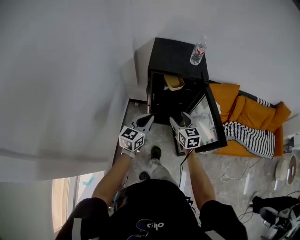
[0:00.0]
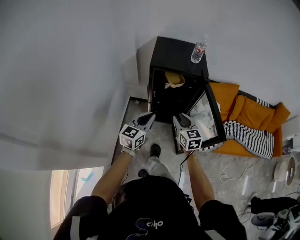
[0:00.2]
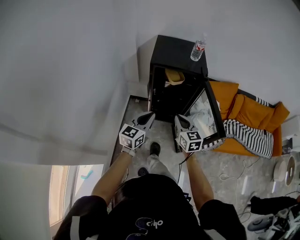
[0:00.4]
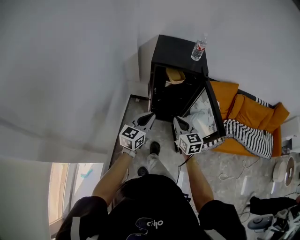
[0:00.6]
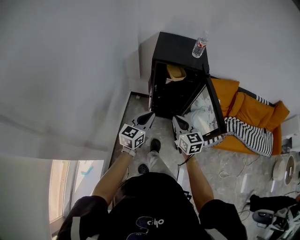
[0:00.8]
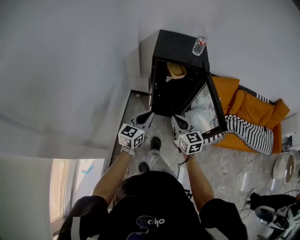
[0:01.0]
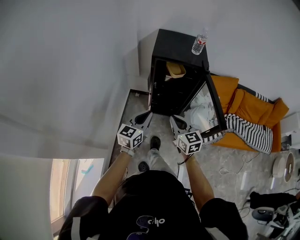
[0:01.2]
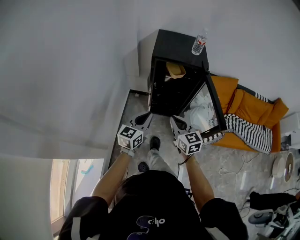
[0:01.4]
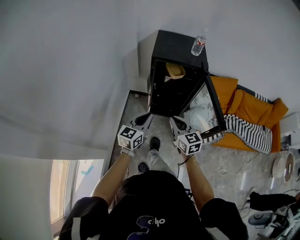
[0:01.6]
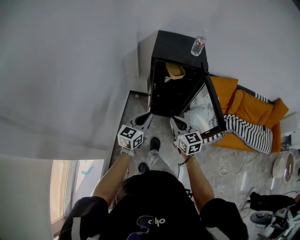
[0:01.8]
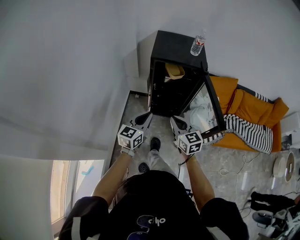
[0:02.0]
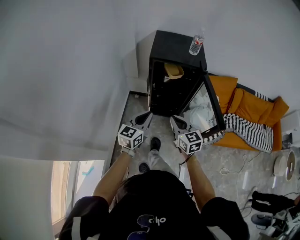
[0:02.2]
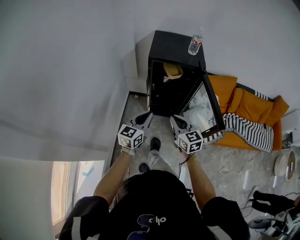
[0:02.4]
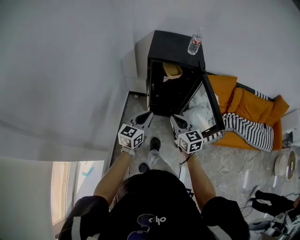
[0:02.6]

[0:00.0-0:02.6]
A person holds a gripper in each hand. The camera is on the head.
0:00.0 to 0:01.2: Both grippers travel together backward, approximately 10 cm. The right gripper closes.
0:01.2 to 0:02.6: There are only small adjustments of the grippers.

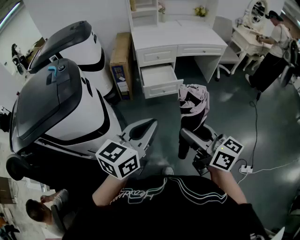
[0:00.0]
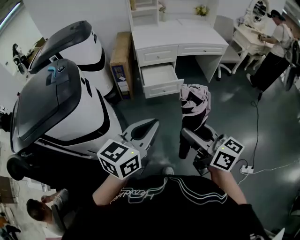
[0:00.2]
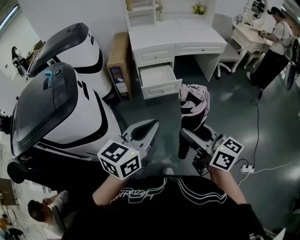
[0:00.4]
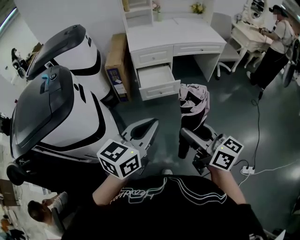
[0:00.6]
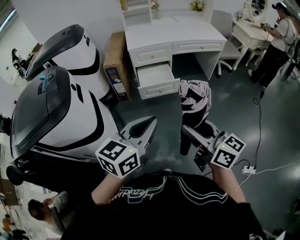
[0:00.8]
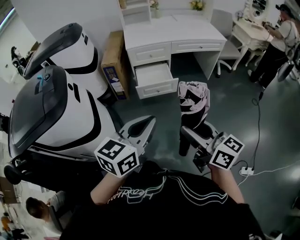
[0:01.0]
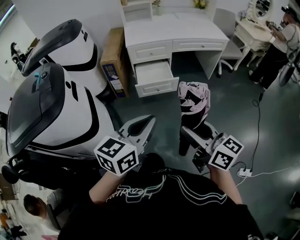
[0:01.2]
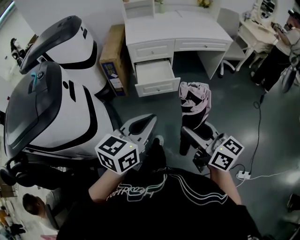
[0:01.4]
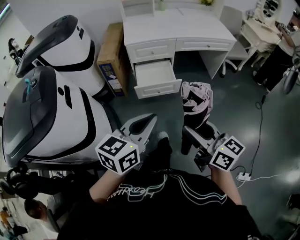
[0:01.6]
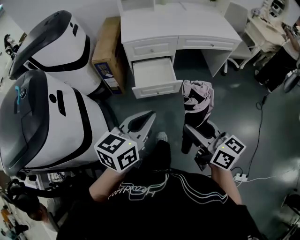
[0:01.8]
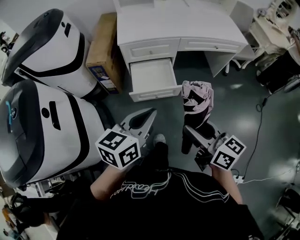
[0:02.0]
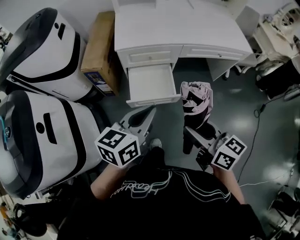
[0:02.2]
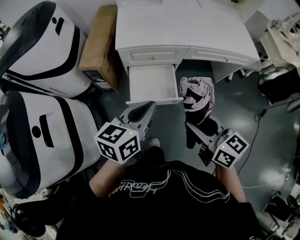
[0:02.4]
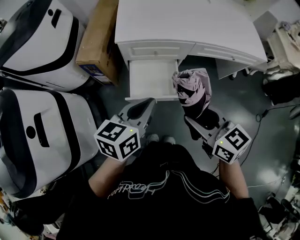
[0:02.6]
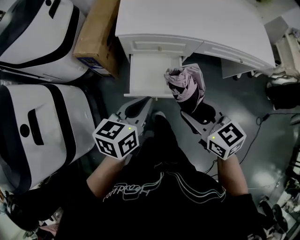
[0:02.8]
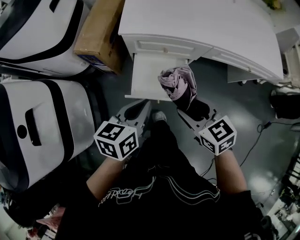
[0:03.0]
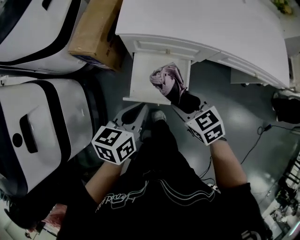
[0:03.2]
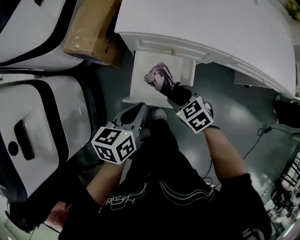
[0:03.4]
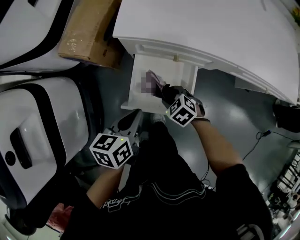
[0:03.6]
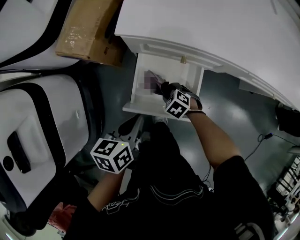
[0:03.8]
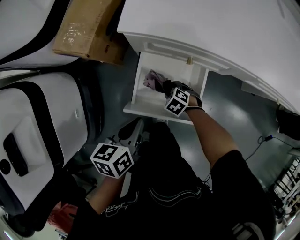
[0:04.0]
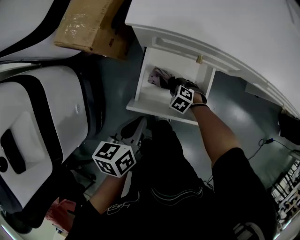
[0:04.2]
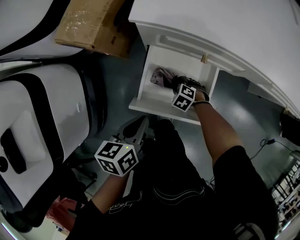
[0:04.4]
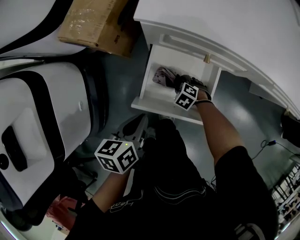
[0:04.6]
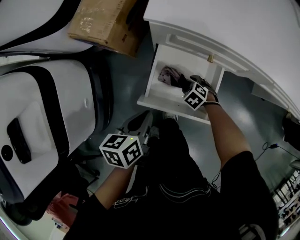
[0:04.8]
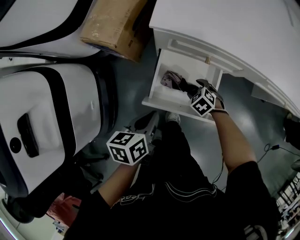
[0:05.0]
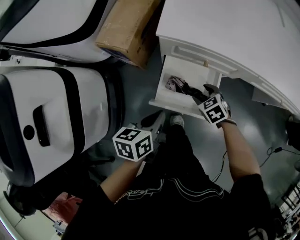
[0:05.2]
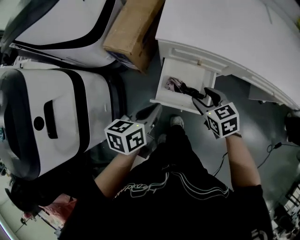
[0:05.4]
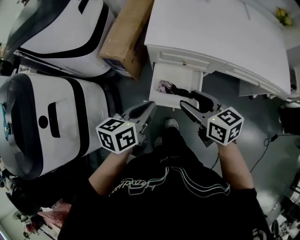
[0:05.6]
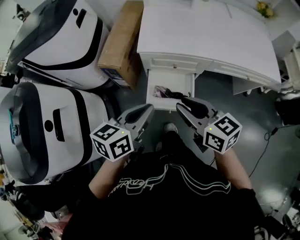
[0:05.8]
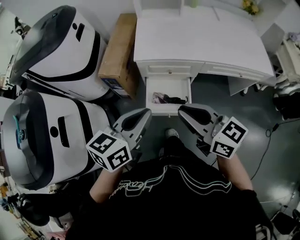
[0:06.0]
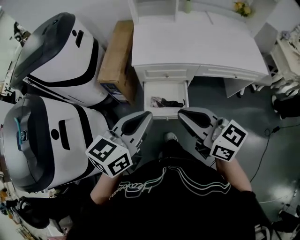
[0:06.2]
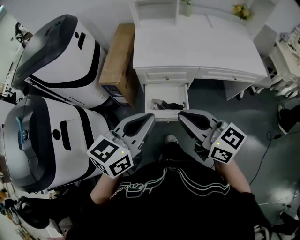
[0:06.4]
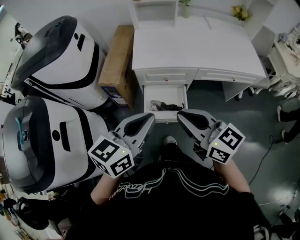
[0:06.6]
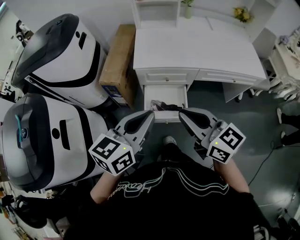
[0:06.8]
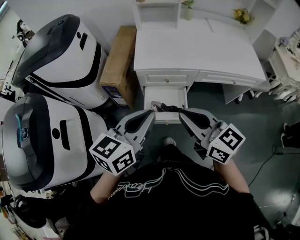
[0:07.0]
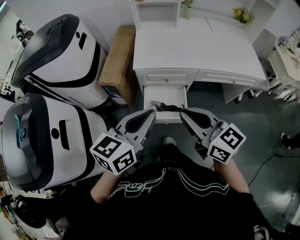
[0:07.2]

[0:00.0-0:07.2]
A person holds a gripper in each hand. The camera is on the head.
0:00.0 to 0:01.4: Both grippers travel together forward, to the right and downward, some 15 cm.
0:01.4 to 0:02.8: Both grippers are carried forward, some 50 cm. The right gripper turns by about 40 degrees; the left gripper changes its angle by some 20 degrees.
0:02.8 to 0:04.4: The right gripper goes some 50 cm downward, and angles its fingers downward, by some 50 degrees. Meanwhile the left gripper shifts some 25 cm downward, and turns by about 30 degrees.
0:04.4 to 0:05.8: The left gripper is displaced upward by approximately 35 cm, and rotates about 30 degrees; the right gripper moves upward, some 60 cm, tilts its fingers approximately 60 degrees upward, and closes.
0:05.8 to 0:07.2: The two grippers go roughly 15 cm upward and backward.

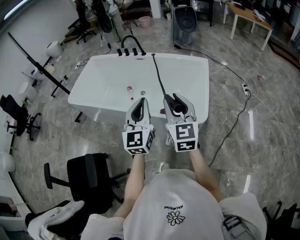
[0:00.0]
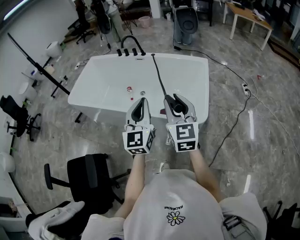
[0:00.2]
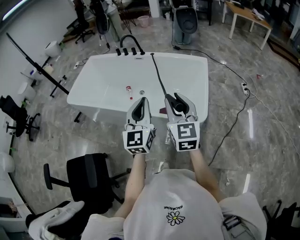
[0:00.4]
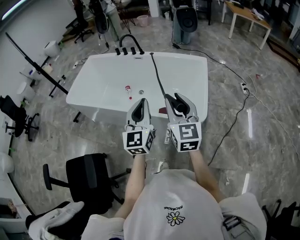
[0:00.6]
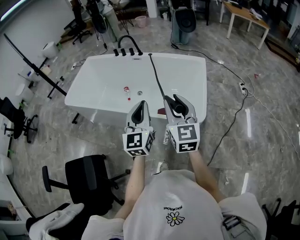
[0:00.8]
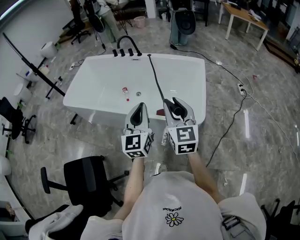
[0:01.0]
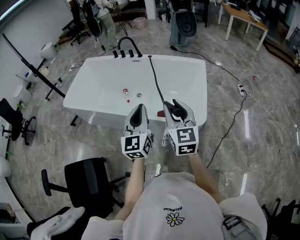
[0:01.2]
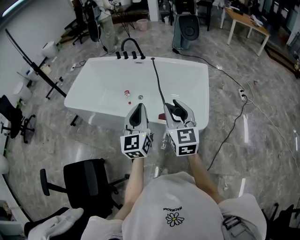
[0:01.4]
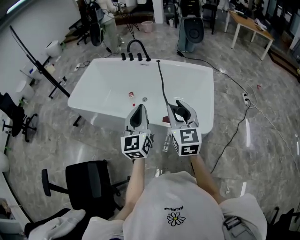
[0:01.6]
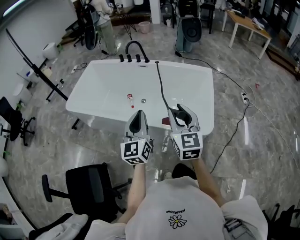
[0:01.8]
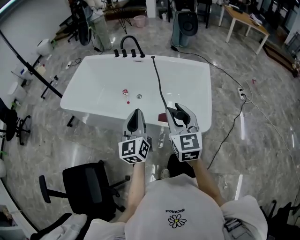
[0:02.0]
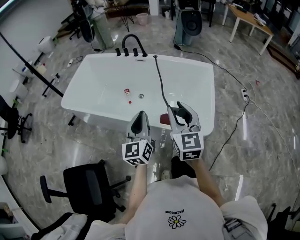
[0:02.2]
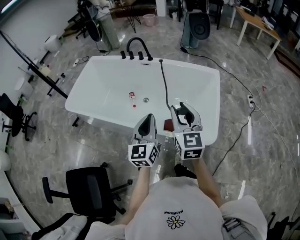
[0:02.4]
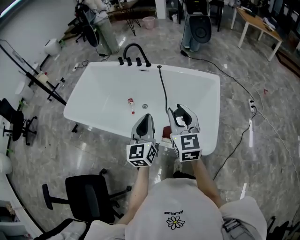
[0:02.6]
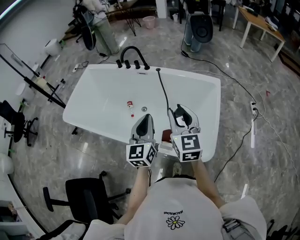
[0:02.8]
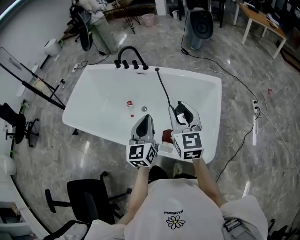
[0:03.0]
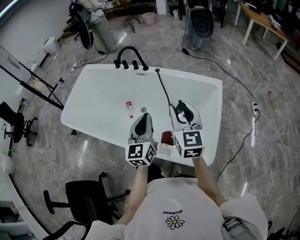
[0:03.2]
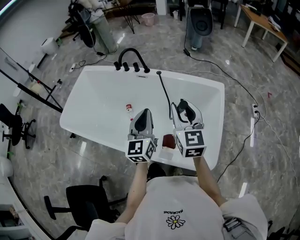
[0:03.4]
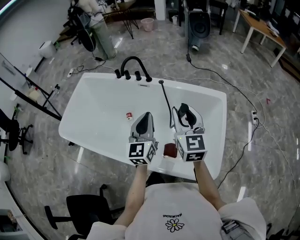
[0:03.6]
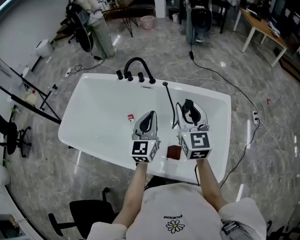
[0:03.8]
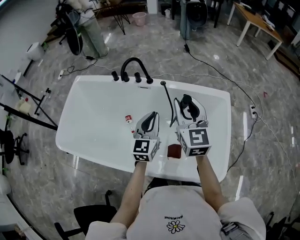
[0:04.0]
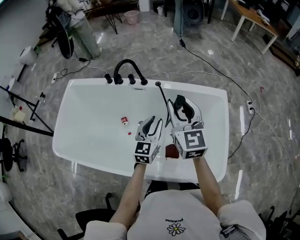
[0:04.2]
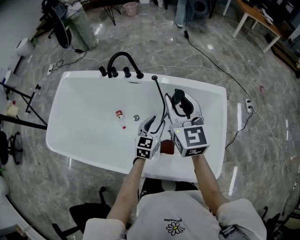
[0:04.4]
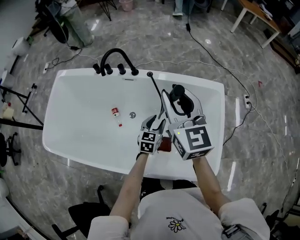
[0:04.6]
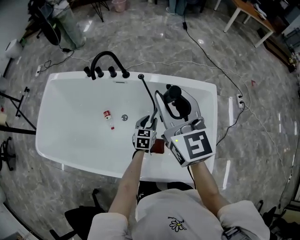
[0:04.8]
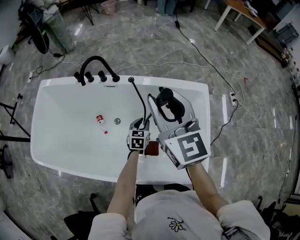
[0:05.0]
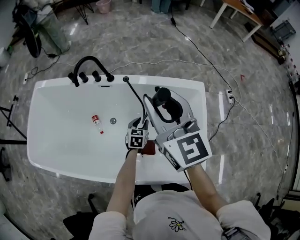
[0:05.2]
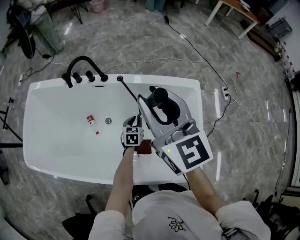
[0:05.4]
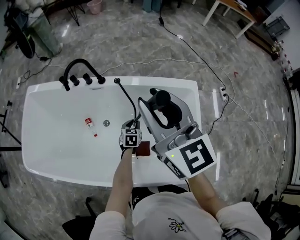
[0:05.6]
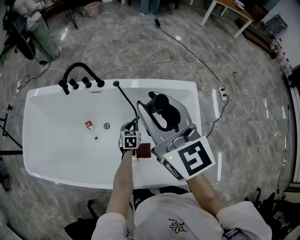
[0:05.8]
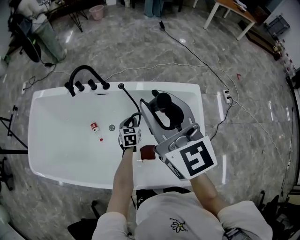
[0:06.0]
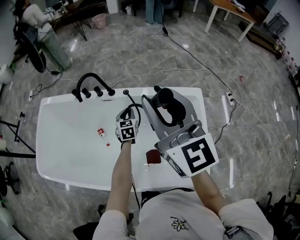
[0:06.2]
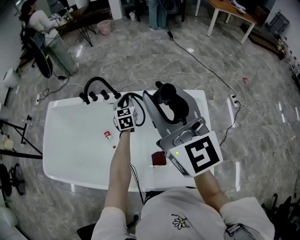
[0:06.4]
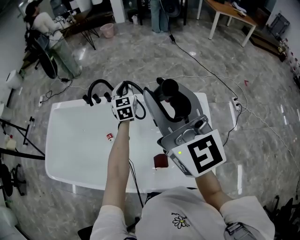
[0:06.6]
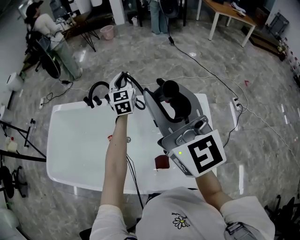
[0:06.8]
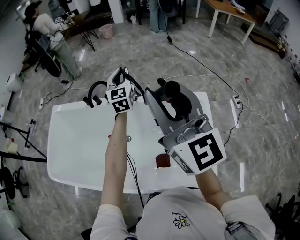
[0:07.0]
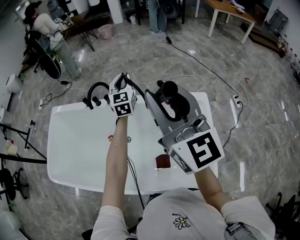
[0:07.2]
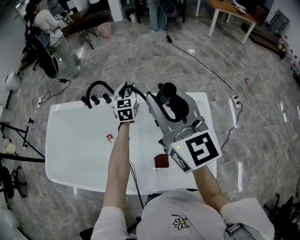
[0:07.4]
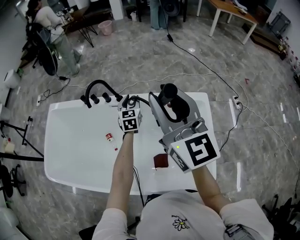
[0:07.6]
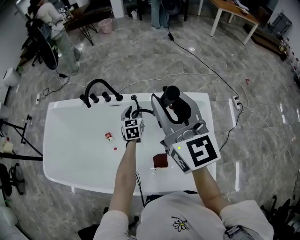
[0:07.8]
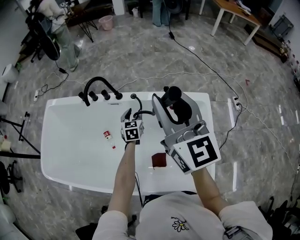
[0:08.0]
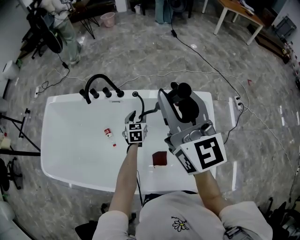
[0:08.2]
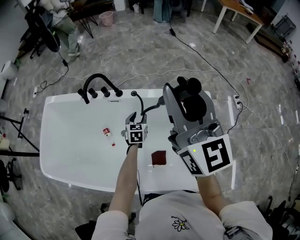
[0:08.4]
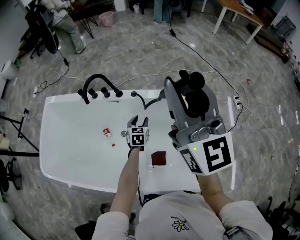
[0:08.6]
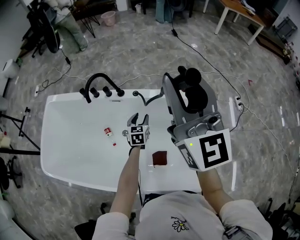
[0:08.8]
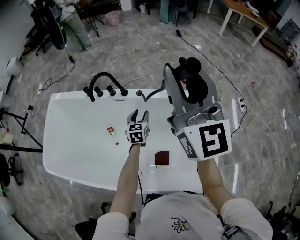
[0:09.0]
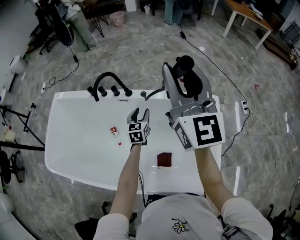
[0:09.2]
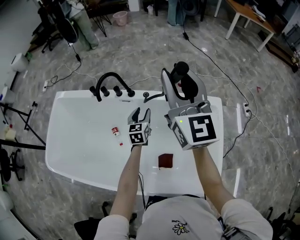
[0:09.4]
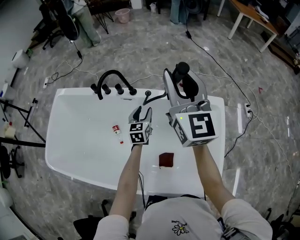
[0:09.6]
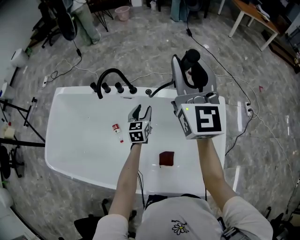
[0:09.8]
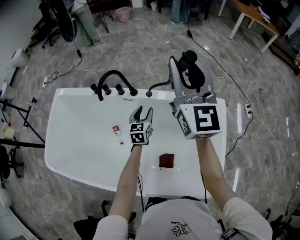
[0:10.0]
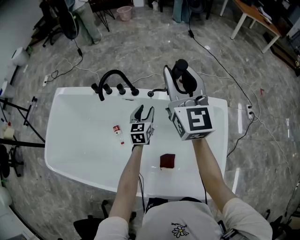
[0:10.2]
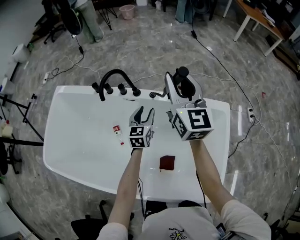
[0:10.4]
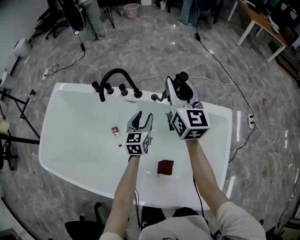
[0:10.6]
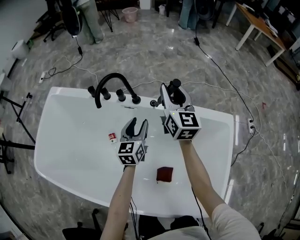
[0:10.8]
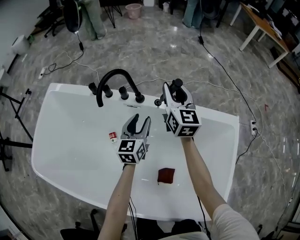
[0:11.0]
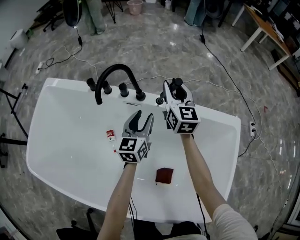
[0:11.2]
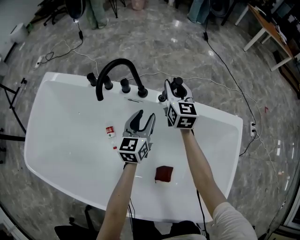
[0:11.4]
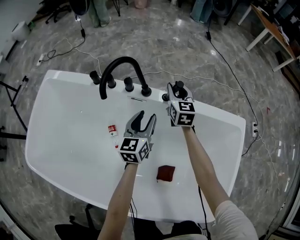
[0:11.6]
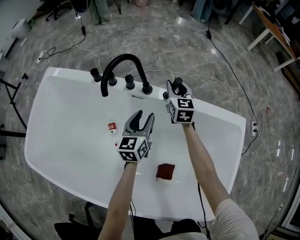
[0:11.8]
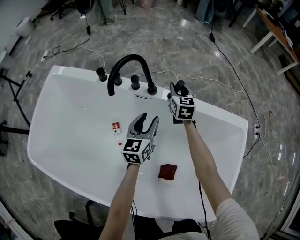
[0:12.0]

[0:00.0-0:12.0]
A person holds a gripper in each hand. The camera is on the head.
0:00.0 to 0:01.6: The two grippers go roughly 5 cm to the left.
0:01.6 to 0:03.0: The right gripper is displaced forward by approximately 25 cm, while the left gripper shifts approximately 25 cm forward and to the right.
0:03.0 to 0:04.4: The right gripper travels forward and to the left by some 25 cm. The left gripper travels forward and downward by approximately 30 cm, turns by approximately 30 degrees, and opens its fingers.
0:04.4 to 0:06.0: The left gripper moves downward and forward, about 20 cm, turns by approximately 20 degrees, and closes. The right gripper is displaced upward and to the right by some 10 cm.
0:06.0 to 0:07.6: The left gripper goes approximately 20 cm upward and forward, turns by about 20 degrees, and opens. Meanwhile the right gripper is displaced upward by about 5 cm.
0:07.6 to 0:09.0: The left gripper shifts approximately 10 cm downward and backward. Meanwhile the right gripper goes roughly 5 cm forward.
0:09.0 to 0:10.4: The left gripper changes place by about 5 cm; the right gripper is displaced downward and forward by about 20 cm.
0:10.4 to 0:12.0: The left gripper moves to the left and downward, approximately 10 cm, while the right gripper shifts approximately 40 cm downward and forward, and swivels roughly 30 degrees.

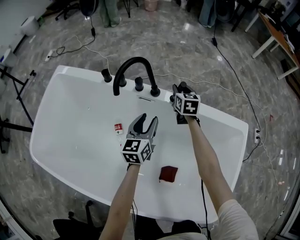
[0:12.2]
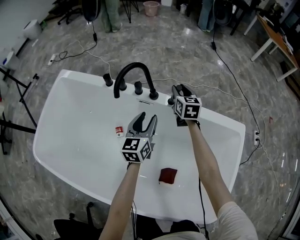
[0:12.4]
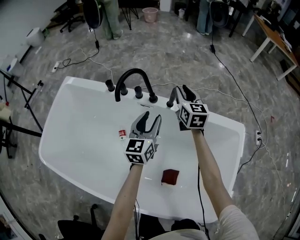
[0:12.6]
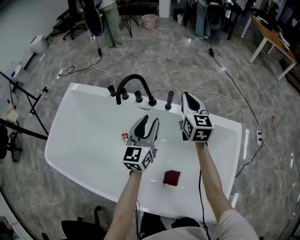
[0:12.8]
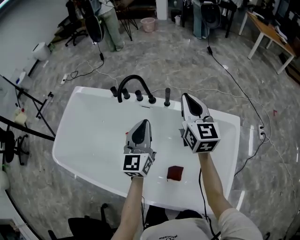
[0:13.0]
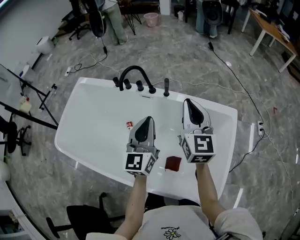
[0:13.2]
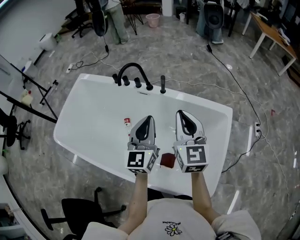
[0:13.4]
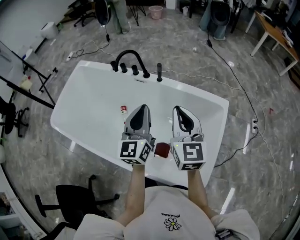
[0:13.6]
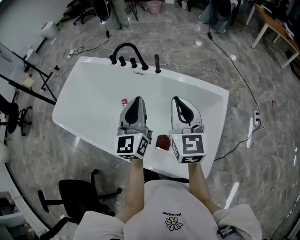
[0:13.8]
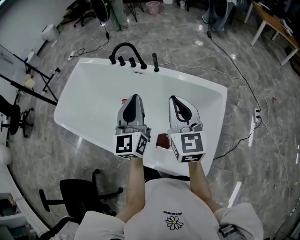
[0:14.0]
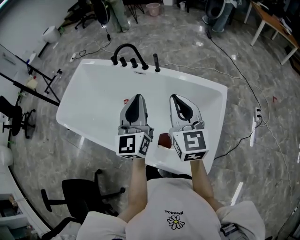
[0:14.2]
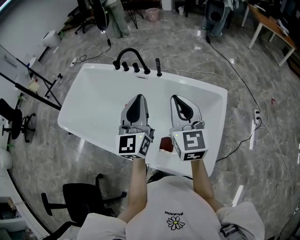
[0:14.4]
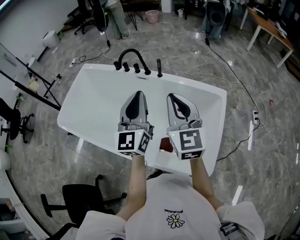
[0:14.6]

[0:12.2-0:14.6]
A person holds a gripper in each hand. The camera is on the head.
0:12.2 to 0:13.4: The left gripper shifts about 35 cm upward, backward and to the right, swivels some 20 degrees, and closes; the right gripper travels backward and upward by approximately 50 cm, swivels some 30 degrees, and closes its fingers.
0:13.4 to 0:14.6: Both grippers move backward and upward, some 15 cm.
